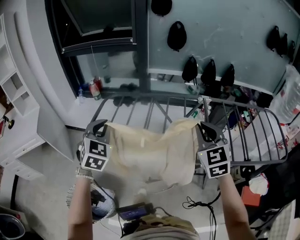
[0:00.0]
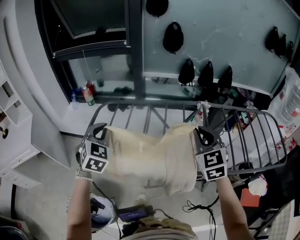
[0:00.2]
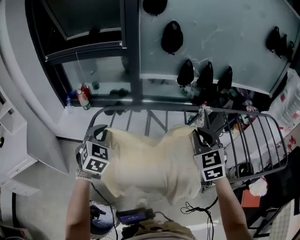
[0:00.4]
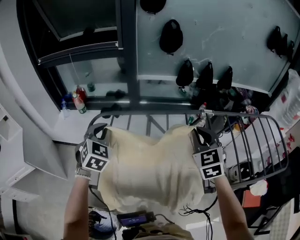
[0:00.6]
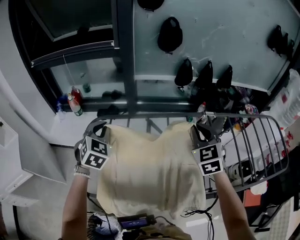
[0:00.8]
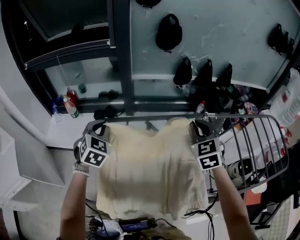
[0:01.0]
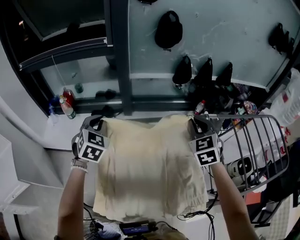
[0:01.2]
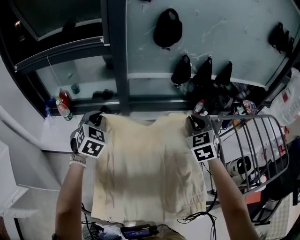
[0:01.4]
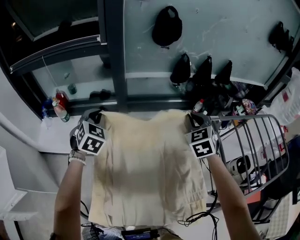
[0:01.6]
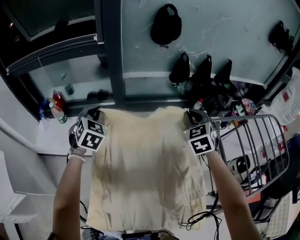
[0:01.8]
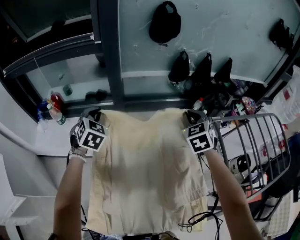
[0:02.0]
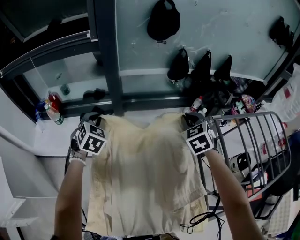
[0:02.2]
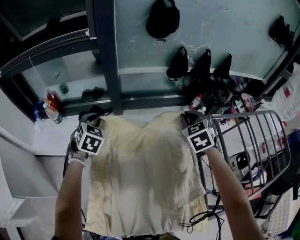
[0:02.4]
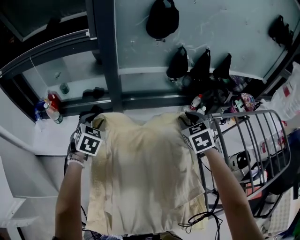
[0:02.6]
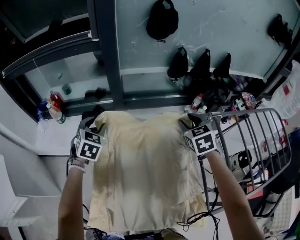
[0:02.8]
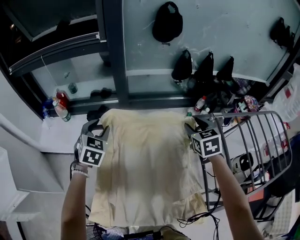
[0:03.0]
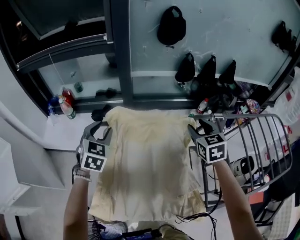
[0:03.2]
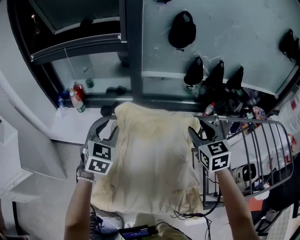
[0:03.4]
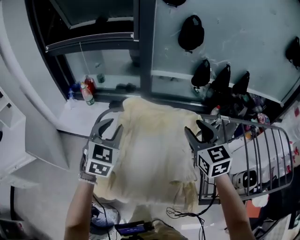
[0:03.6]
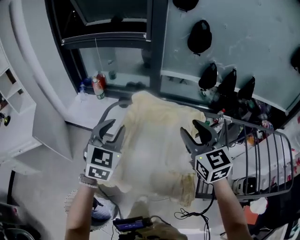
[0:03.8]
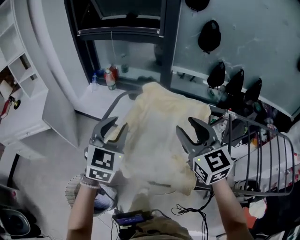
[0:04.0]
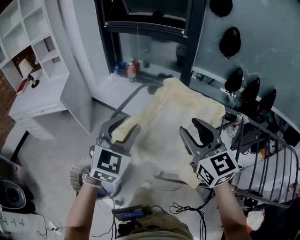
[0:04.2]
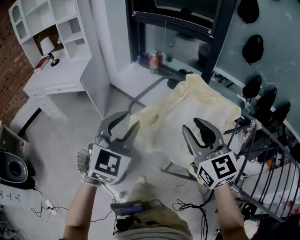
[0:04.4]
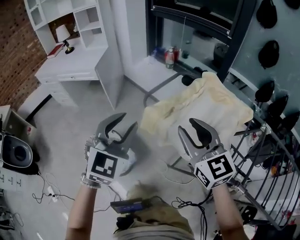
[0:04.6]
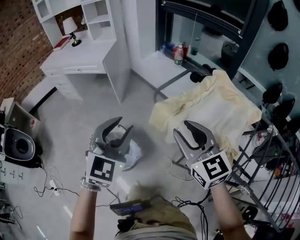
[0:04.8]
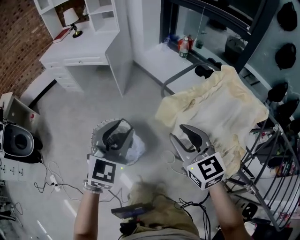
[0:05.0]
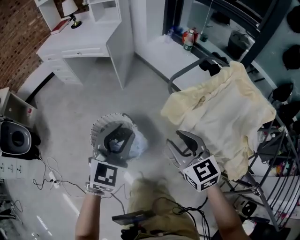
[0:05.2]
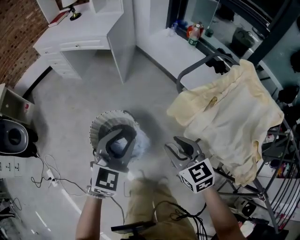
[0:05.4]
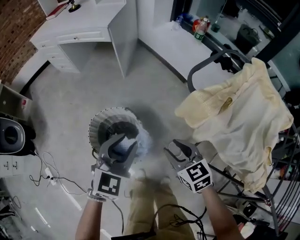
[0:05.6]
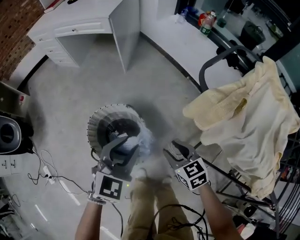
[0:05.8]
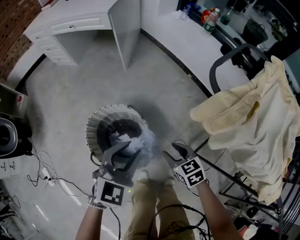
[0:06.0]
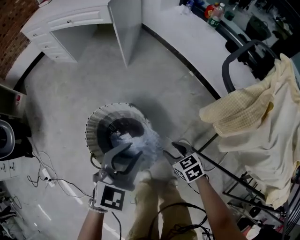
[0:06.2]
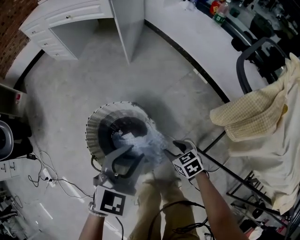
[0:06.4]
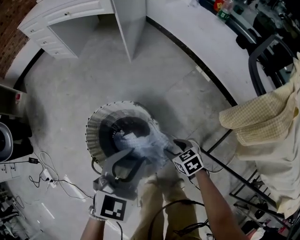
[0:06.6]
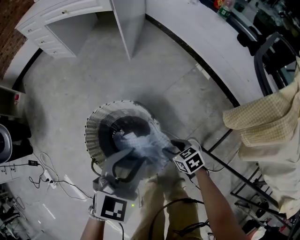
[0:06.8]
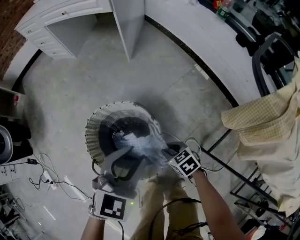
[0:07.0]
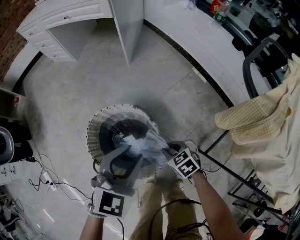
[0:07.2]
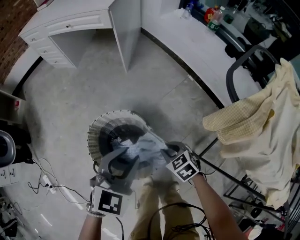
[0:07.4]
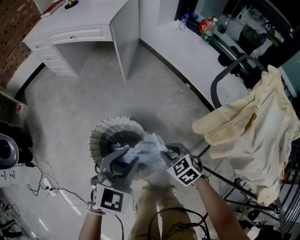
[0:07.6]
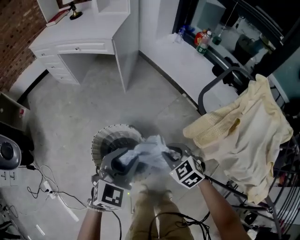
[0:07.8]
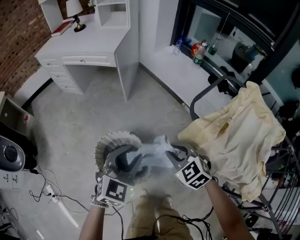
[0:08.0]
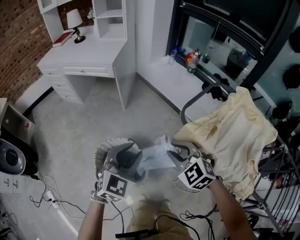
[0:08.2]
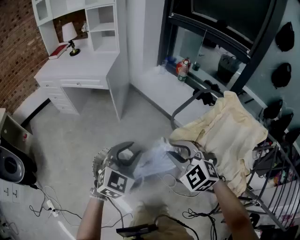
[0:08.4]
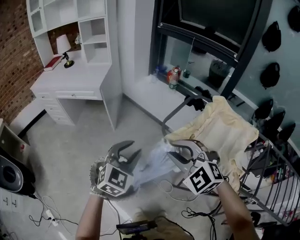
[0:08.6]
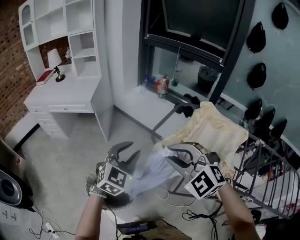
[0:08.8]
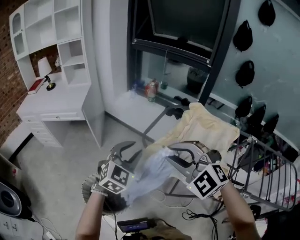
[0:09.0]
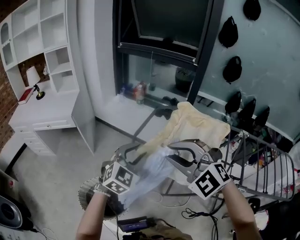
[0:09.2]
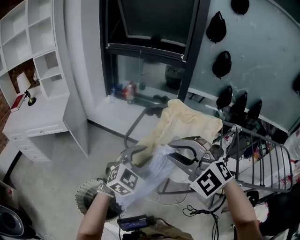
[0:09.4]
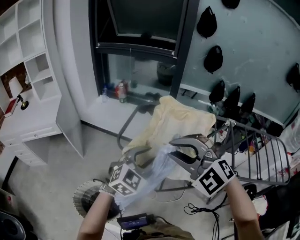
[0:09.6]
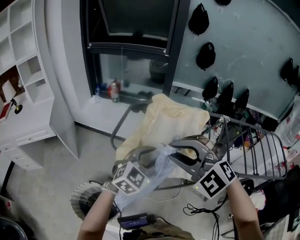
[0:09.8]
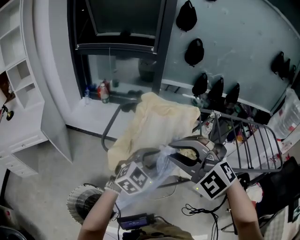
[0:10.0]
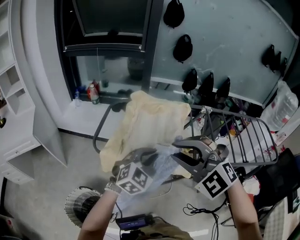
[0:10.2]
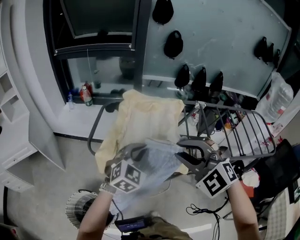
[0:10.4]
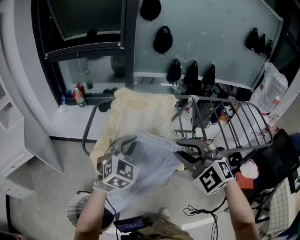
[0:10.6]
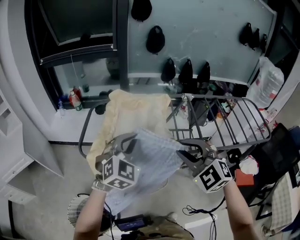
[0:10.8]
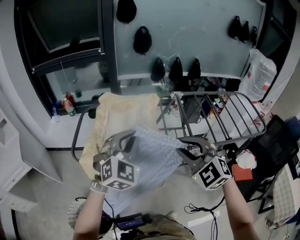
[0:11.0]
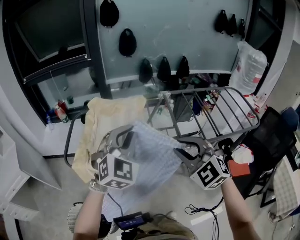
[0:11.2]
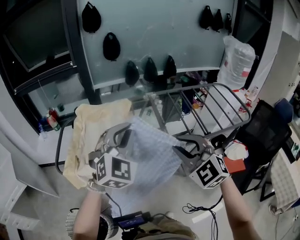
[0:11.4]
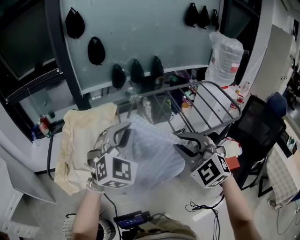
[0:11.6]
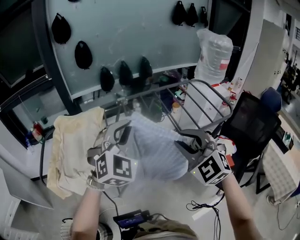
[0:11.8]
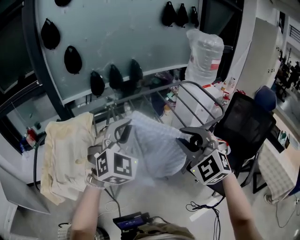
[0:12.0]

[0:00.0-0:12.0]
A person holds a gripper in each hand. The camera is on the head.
0.0 to 1.6 s: Both grippers move forward, approximately 40 cm. The right gripper changes its angle by about 20 degrees.
1.6 to 3.0 s: The right gripper travels downward by approximately 5 cm, rotates approximately 20 degrees, and opens, while the left gripper shifts by approximately 5 cm, and opens its fingers.
3.0 to 4.4 s: The two grippers travel together, roughly 50 cm. The right gripper angles its fingers upward, by approximately 30 degrees; the left gripper swivels some 30 degrees.
4.4 to 6.0 s: The two grippers go some 50 cm downward and to the left. The right gripper tilts its fingers approximately 40 degrees downward; the left gripper rotates approximately 30 degrees.
6.0 to 7.6 s: The right gripper travels forward by roughly 5 cm, and goes downward and returns, roughly 20 cm each way. Meanwhile the left gripper travels downward and back again, some 10 cm each way.
7.6 to 9.0 s: The left gripper is displaced upward and to the right by approximately 30 cm, and rotates roughly 30 degrees. Meanwhile the right gripper shifts some 50 cm upward, and rotates about 50 degrees.
9.0 to 10.4 s: The right gripper ends up some 25 cm from where it was, and turns by some 30 degrees, while the left gripper shifts by about 25 cm, changes its angle by roughly 30 degrees, and closes.
10.4 to 12.0 s: The pair of grippers is taken to the right, some 40 cm. The right gripper swivels approximately 40 degrees. Meanwhile the left gripper turns by some 30 degrees.

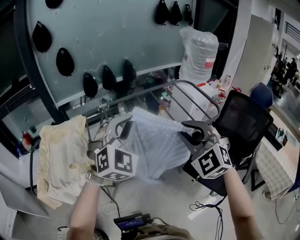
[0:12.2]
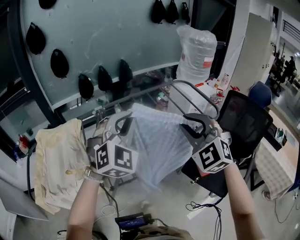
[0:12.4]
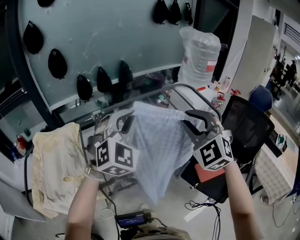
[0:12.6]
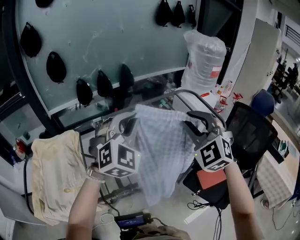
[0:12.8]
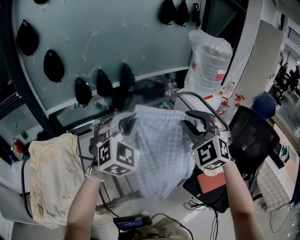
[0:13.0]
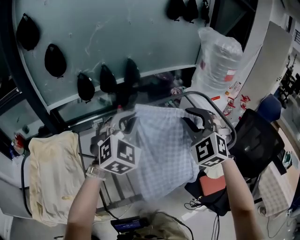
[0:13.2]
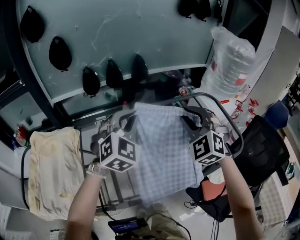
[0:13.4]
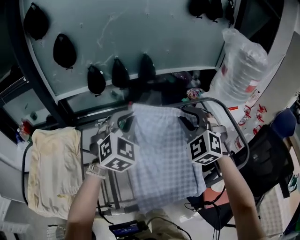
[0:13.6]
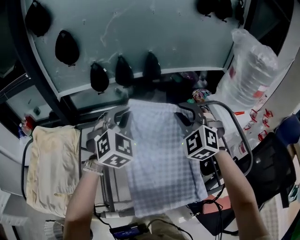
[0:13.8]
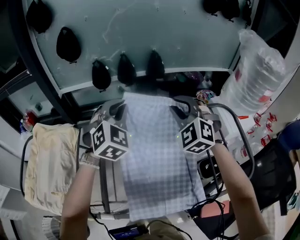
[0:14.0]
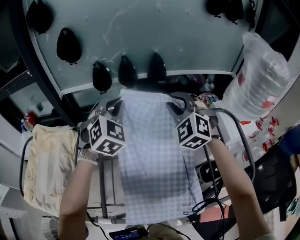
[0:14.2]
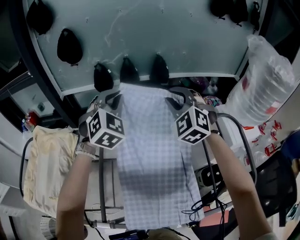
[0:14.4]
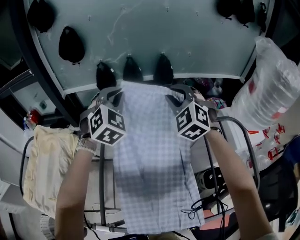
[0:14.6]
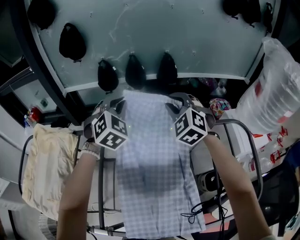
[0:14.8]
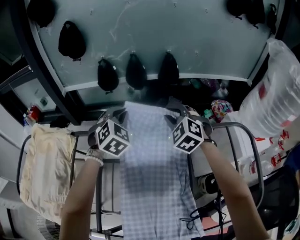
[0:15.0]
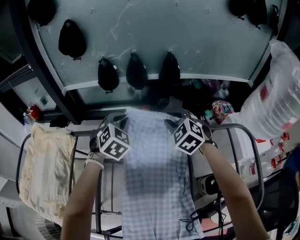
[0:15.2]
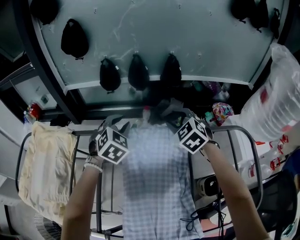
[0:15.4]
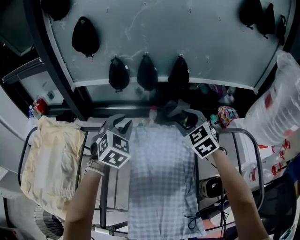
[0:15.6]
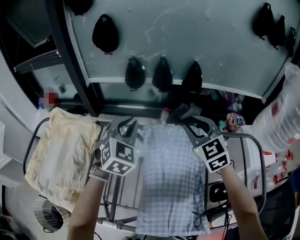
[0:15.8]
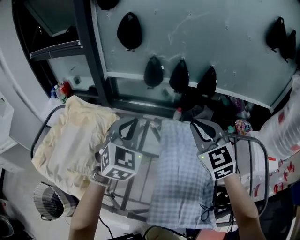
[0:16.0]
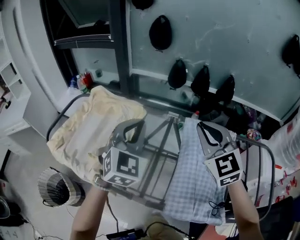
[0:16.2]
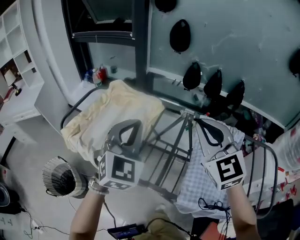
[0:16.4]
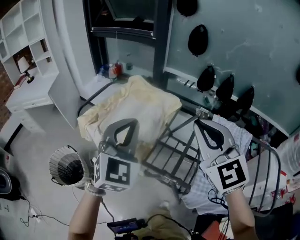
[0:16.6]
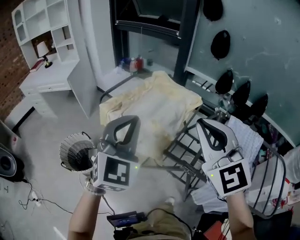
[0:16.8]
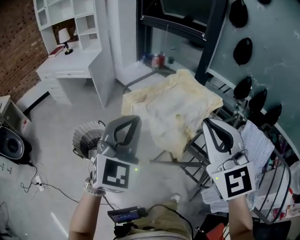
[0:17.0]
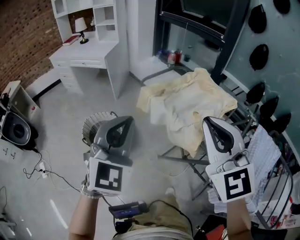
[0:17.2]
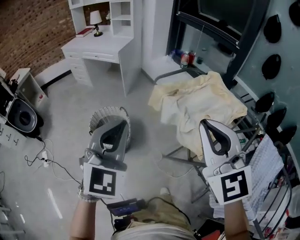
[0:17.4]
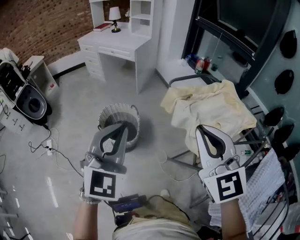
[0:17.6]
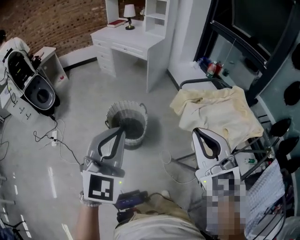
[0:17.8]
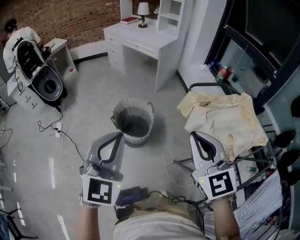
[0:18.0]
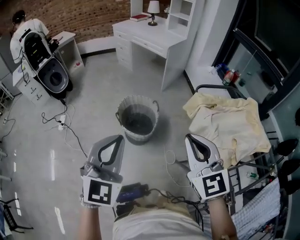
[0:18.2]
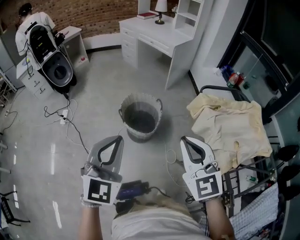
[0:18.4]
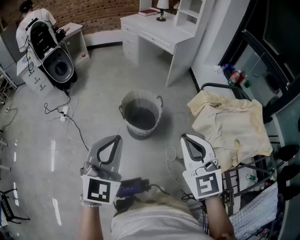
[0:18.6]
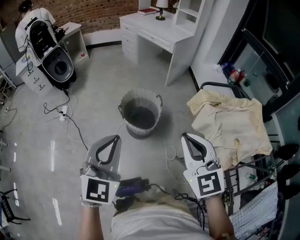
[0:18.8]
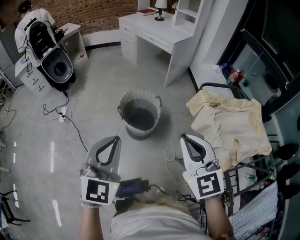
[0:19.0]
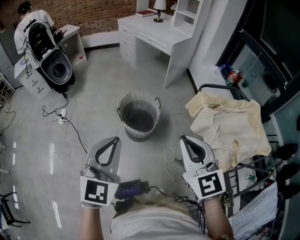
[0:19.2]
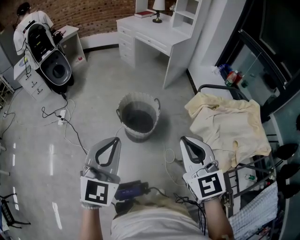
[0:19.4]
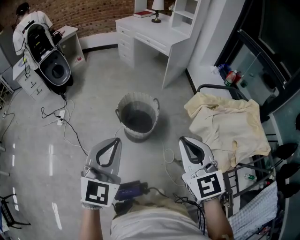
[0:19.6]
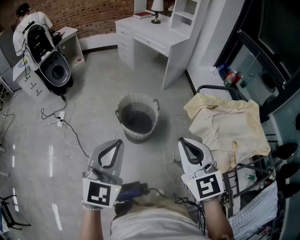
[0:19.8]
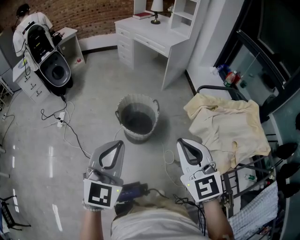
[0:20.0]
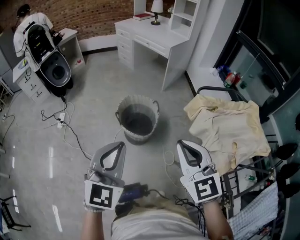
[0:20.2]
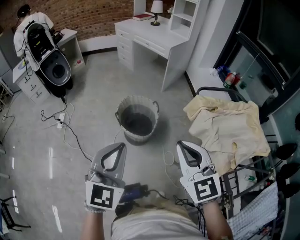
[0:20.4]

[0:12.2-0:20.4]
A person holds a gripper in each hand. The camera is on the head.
12.2 to 13.8 s: Both grippers travel together forward, some 35 cm. The left gripper changes its angle by about 20 degrees.
13.8 to 15.4 s: Both grippers move forward and downward, about 20 cm. The left gripper rotates approximately 20 degrees, and opens up. Meanwhile the right gripper changes its angle by some 30 degrees.
15.4 to 17.2 s: The two grippers travel together, roughly 80 cm. The right gripper angles its fingers upward, by roughly 30 degrees, and closes its fingers; the left gripper rotates roughly 60 degrees, and closes up.
17.2 to 18.8 s: The right gripper ends up approximately 25 cm from where it was, and rotates approximately 30 degrees. Meanwhile the left gripper moves roughly 25 cm, and swivels some 40 degrees.
18.8 to 20.4 s: There are only small adjustments of the grippers.

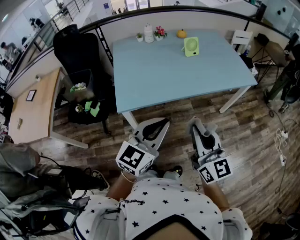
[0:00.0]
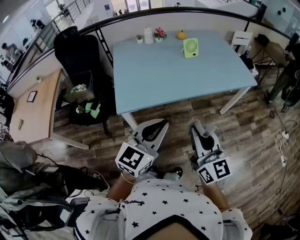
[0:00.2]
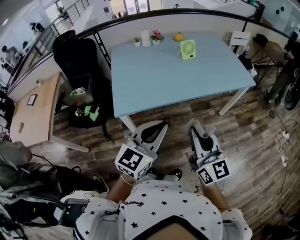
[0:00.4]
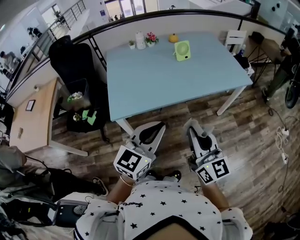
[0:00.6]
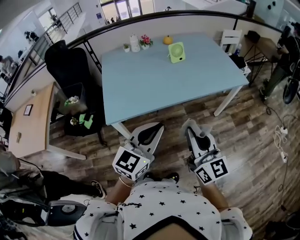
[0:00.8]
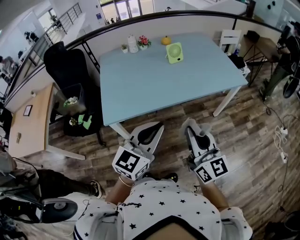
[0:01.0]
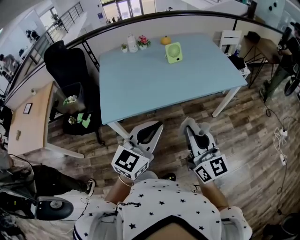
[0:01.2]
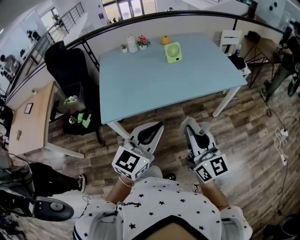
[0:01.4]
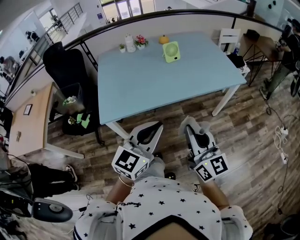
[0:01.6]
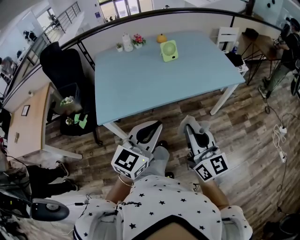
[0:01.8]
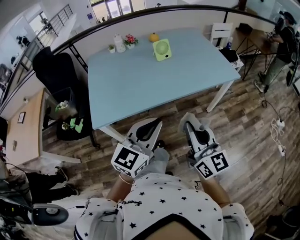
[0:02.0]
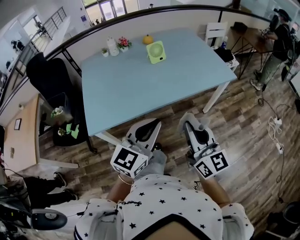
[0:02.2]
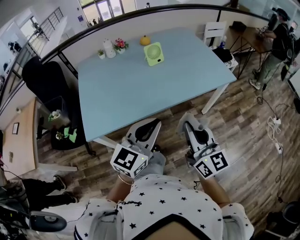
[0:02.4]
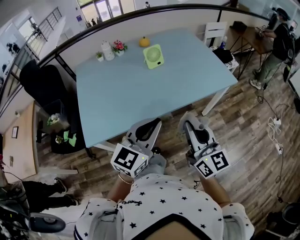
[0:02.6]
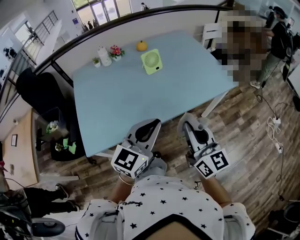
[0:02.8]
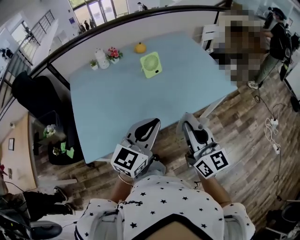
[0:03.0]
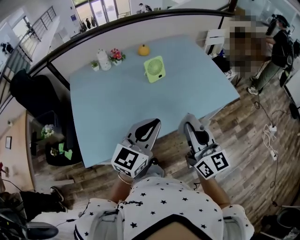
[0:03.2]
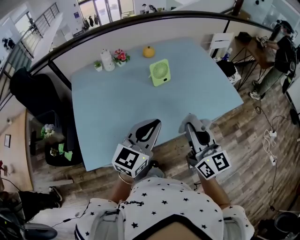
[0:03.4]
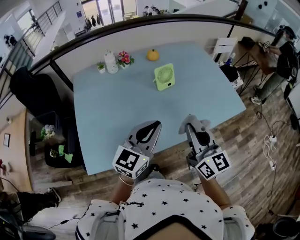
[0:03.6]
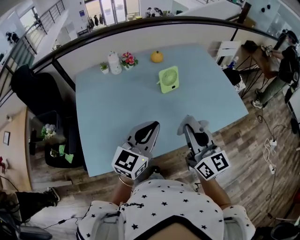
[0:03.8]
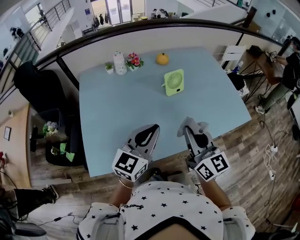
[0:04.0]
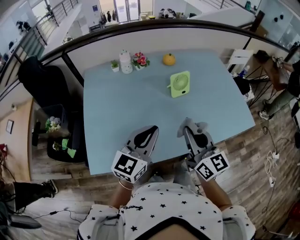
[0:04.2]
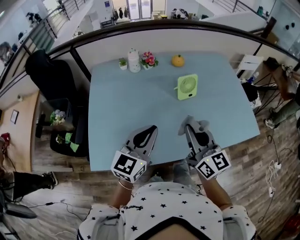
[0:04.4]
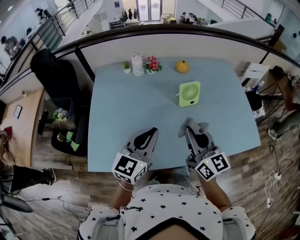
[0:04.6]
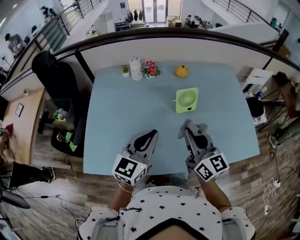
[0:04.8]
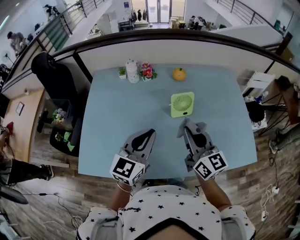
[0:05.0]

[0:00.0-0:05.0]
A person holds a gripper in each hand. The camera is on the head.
0.0 to 1.6 s: The grippers both shift to the right by some 10 cm.
1.6 to 3.4 s: Both grippers travel together forward, some 25 cm.
3.4 to 5.0 s: The grippers both shift forward by roughly 20 cm. The left gripper swivels roughly 20 degrees; the right gripper turns by about 20 degrees.
